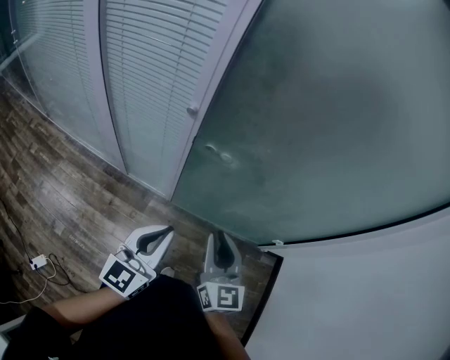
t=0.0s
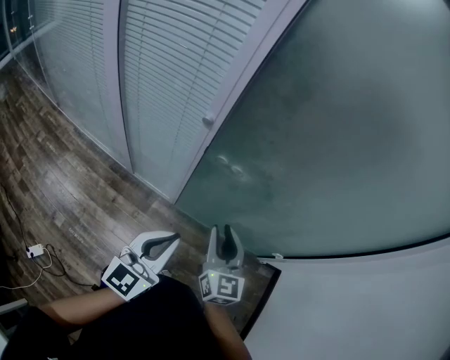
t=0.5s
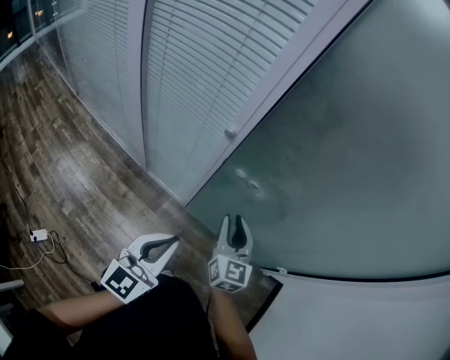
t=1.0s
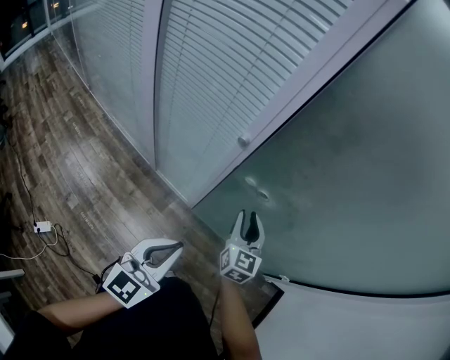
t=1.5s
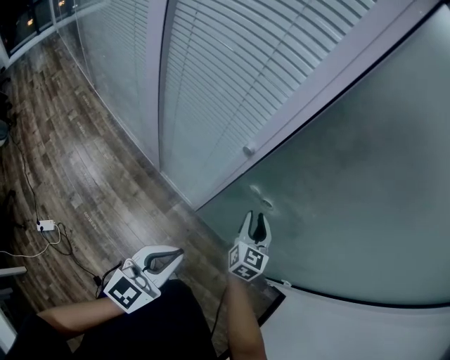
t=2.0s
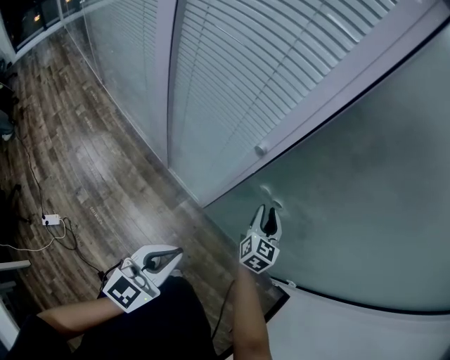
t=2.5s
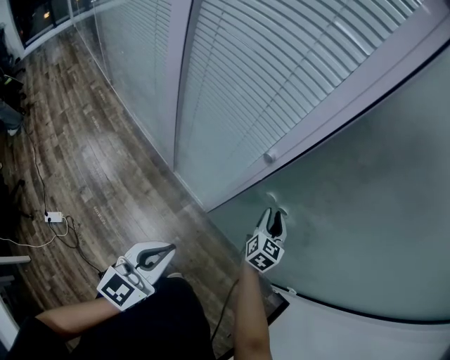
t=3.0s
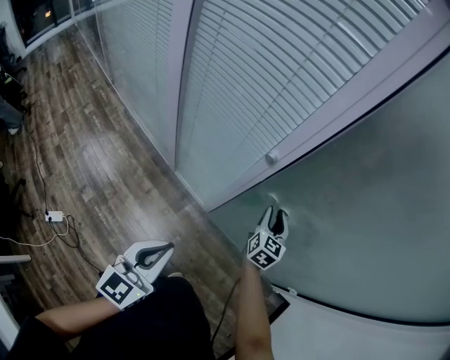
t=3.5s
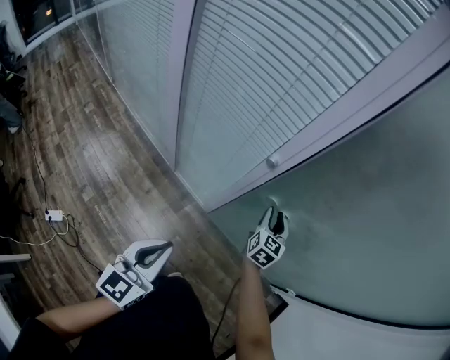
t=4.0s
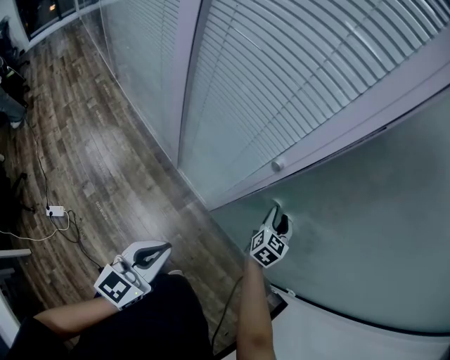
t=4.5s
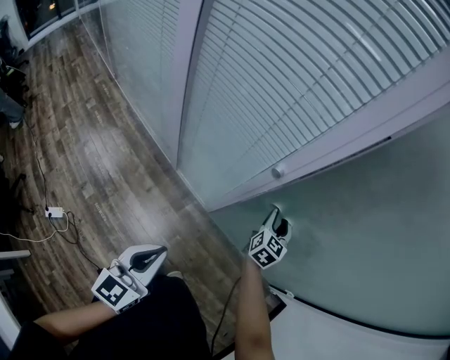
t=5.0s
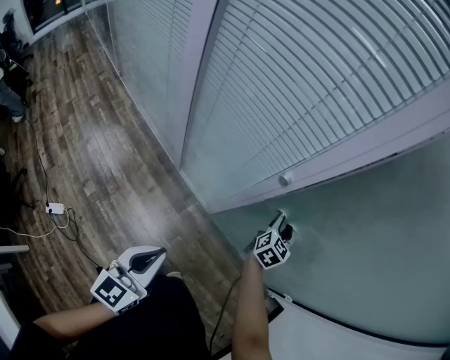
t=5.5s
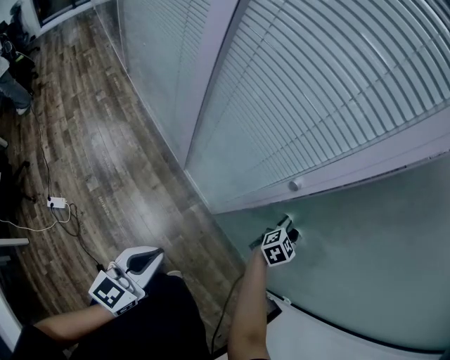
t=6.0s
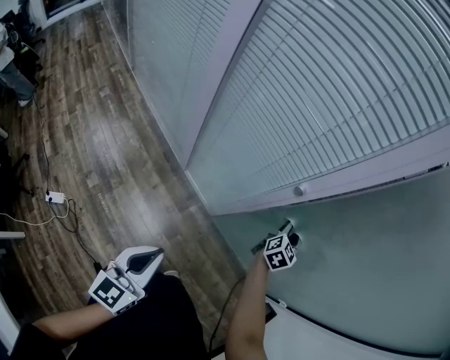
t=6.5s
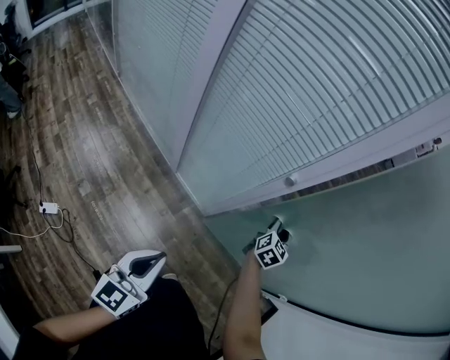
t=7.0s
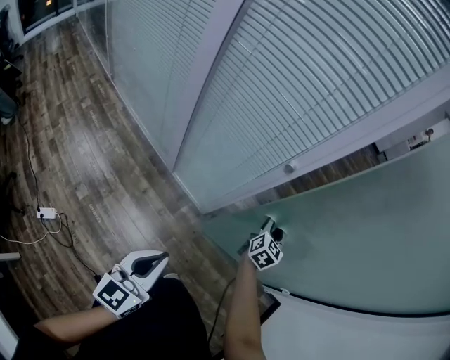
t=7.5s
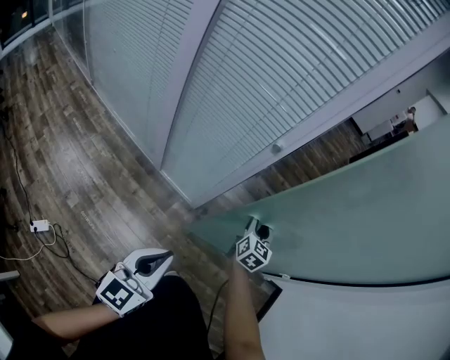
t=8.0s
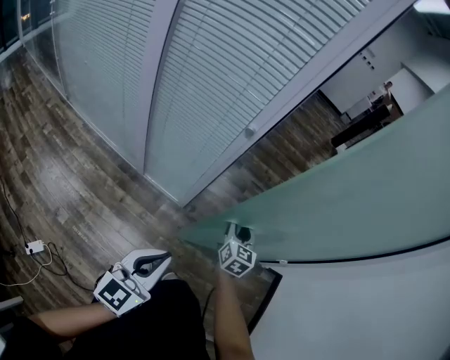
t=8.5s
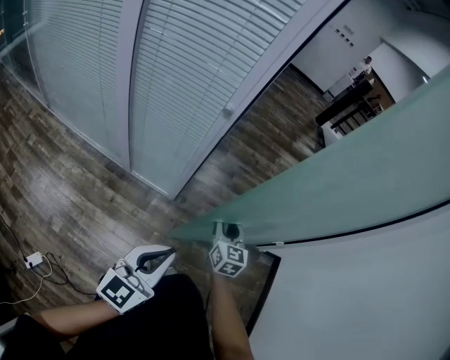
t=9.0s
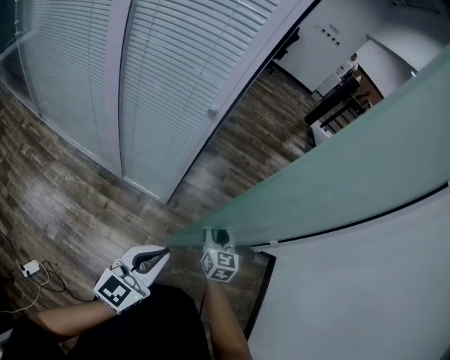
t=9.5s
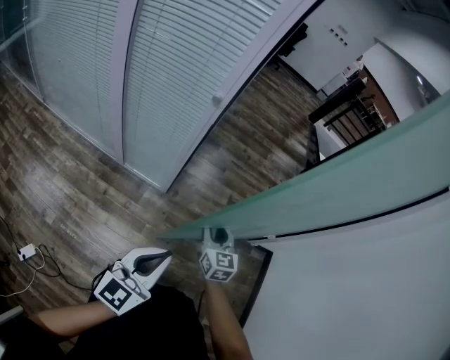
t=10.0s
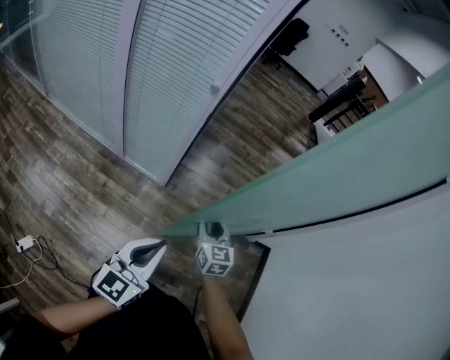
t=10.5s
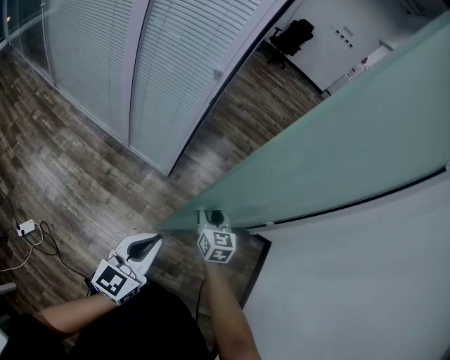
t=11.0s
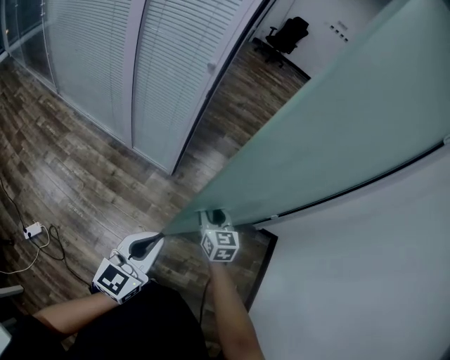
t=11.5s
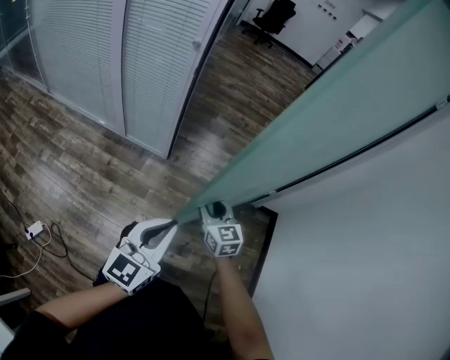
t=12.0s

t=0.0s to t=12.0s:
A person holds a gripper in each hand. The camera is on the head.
t=0.0s to t=2.0s: The right gripper shifts about 25 cm forward and downward.
t=2.0s to t=4.0s: The left gripper is displaced to the left by about 5 cm. Meanwhile the right gripper travels forward by roughly 5 cm.
t=4.0s to t=6.0s: The left gripper changes place by some 5 cm.
t=6.0s to t=8.0s: The left gripper goes about 5 cm backward. The right gripper heads backward, covering roughly 15 cm.
t=8.0s to t=10.0s: The right gripper travels backward by about 20 cm; the left gripper heads to the right, covering approximately 10 cm.
t=10.0s to t=12.0s: Both grippers move backward and to the right, approximately 15 cm.

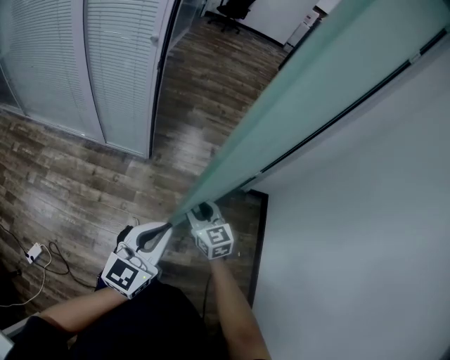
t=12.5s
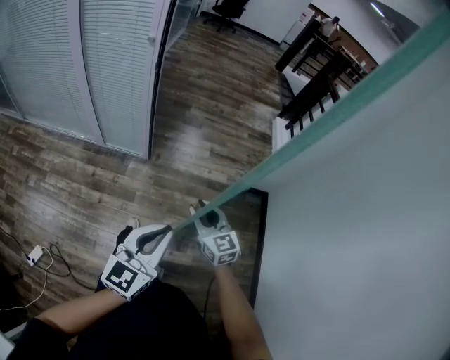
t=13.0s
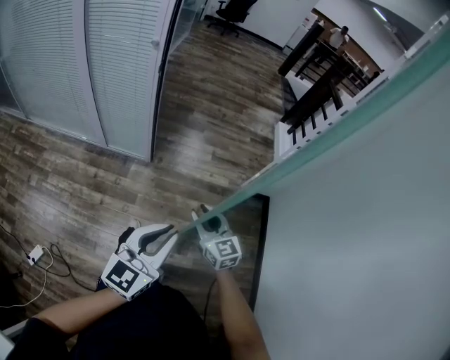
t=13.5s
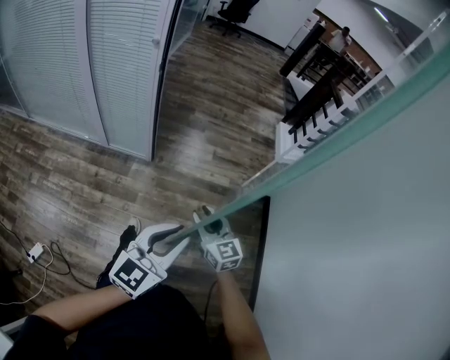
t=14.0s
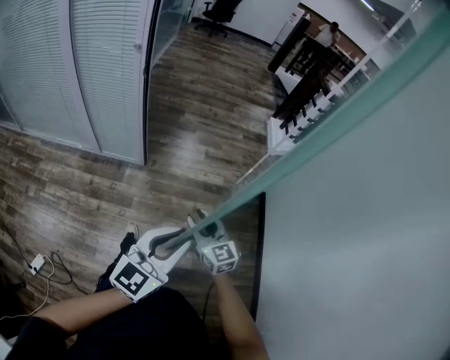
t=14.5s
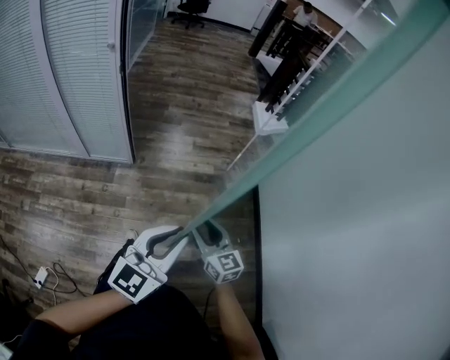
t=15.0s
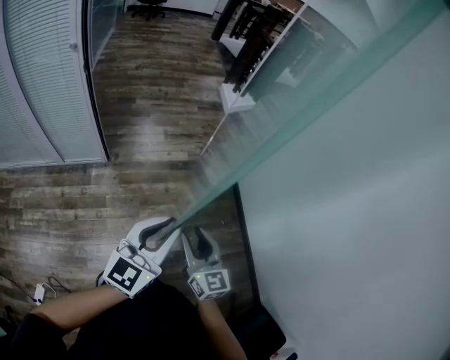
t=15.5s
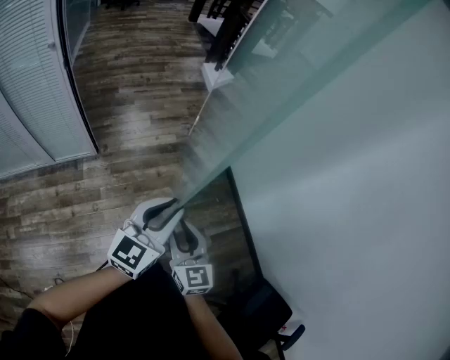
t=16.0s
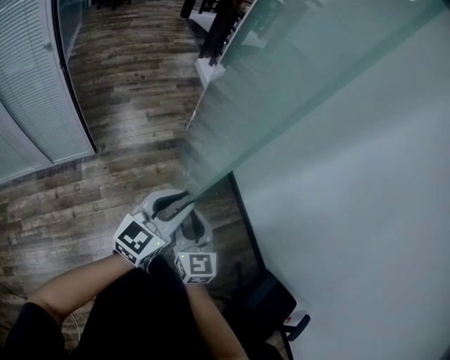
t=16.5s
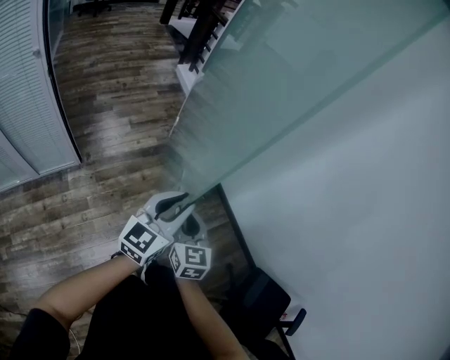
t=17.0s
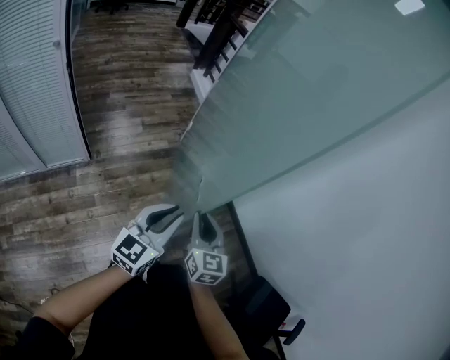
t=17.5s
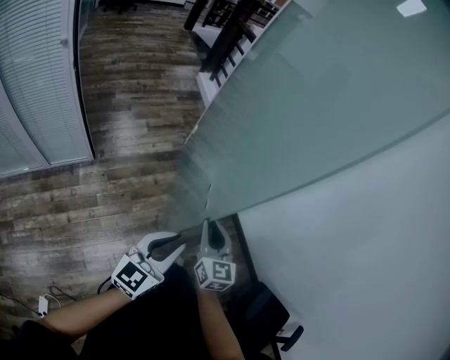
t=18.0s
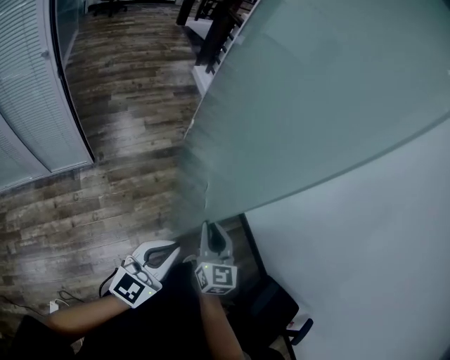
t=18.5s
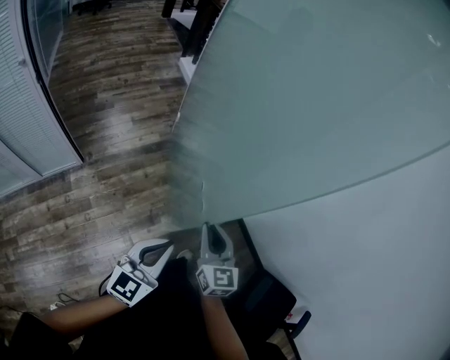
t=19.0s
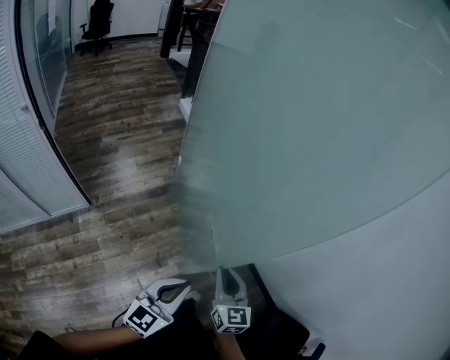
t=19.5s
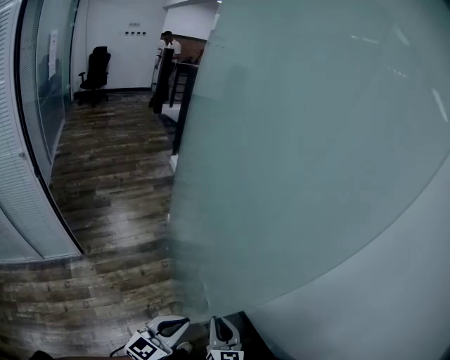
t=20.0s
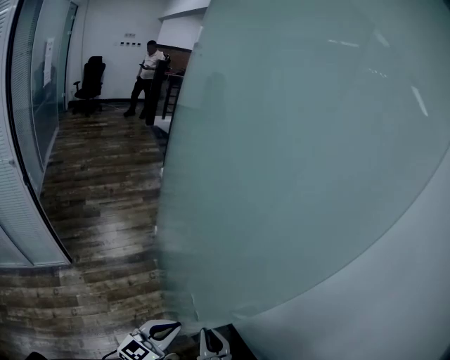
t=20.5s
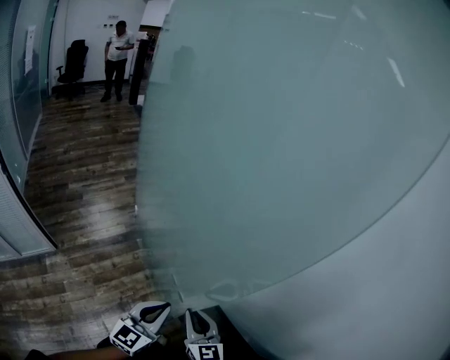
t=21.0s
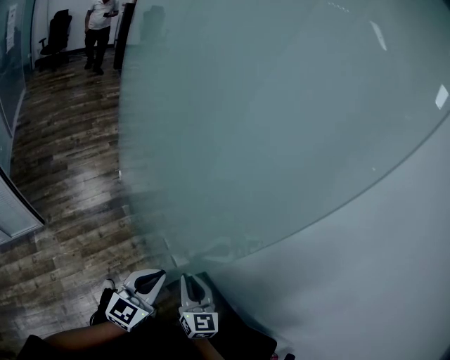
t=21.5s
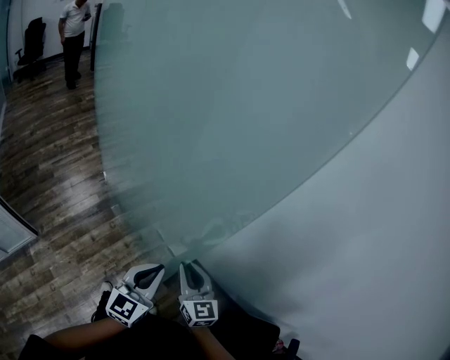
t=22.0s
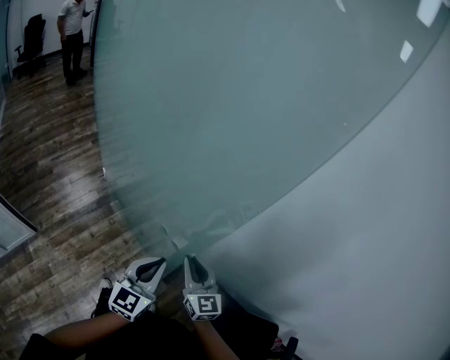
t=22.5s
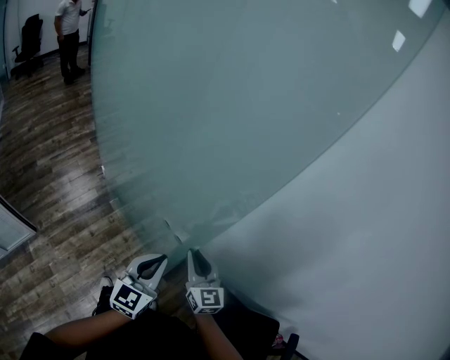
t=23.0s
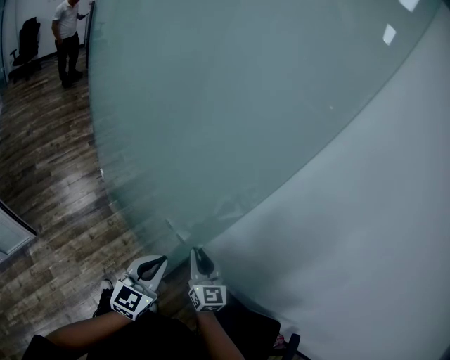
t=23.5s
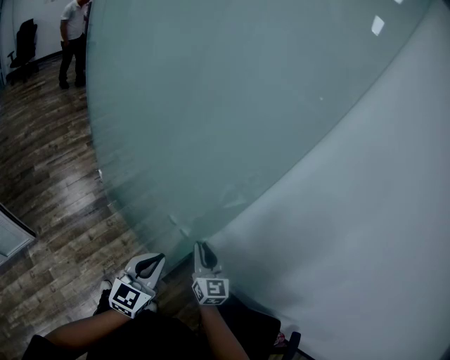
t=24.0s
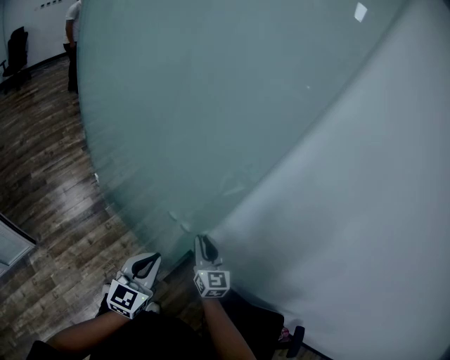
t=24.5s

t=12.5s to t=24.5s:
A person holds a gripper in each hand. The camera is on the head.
t=12.5s to t=14.5s: The right gripper moves backward and to the right, about 5 cm. Meanwhile the left gripper goes some 5 cm to the right.
t=14.5s to t=16.5s: The left gripper changes place by about 10 cm, and swivels roughly 30 degrees. The right gripper changes place by some 15 cm, and changes its angle by approximately 40 degrees.
t=16.5s to t=18.5s: The left gripper shifts about 10 cm backward. Meanwhile the right gripper goes approximately 5 cm to the right.
t=18.5s to t=20.5s: The two grippers go some 20 cm to the right and forward.
t=20.5s to t=22.5s: Both grippers move to the right and forward, approximately 15 cm.
t=22.5s to t=24.5s: The right gripper is displaced forward by roughly 5 cm.

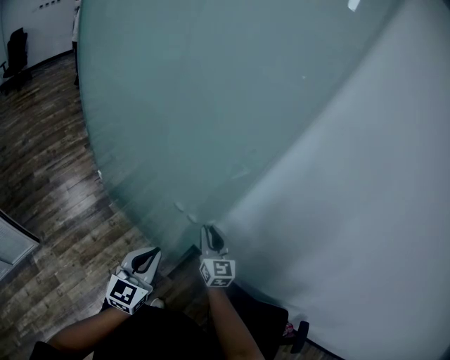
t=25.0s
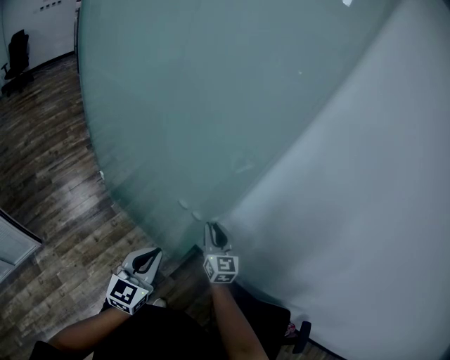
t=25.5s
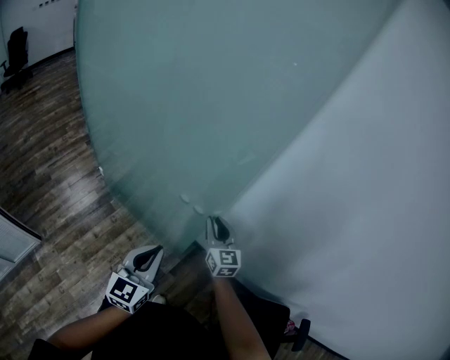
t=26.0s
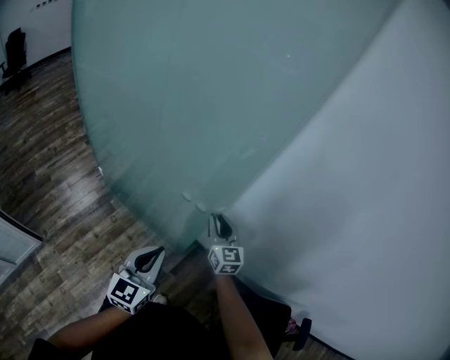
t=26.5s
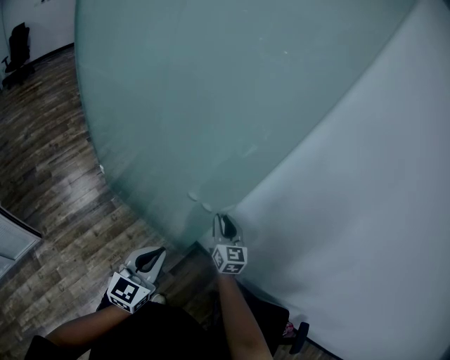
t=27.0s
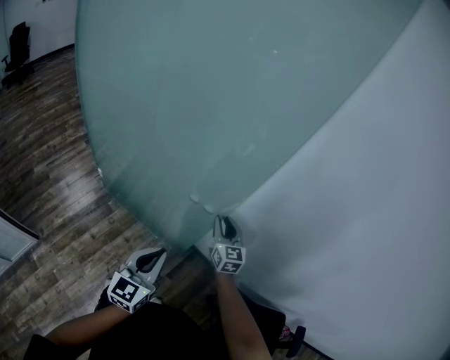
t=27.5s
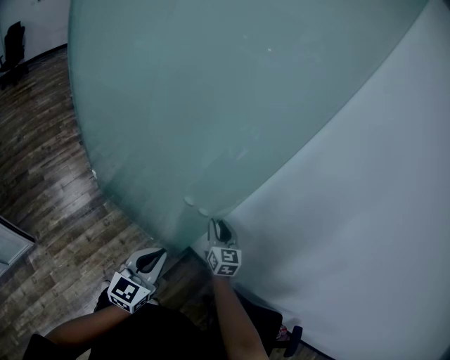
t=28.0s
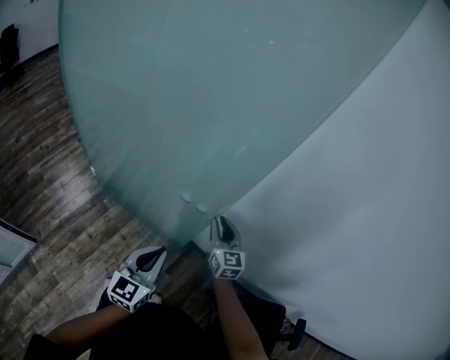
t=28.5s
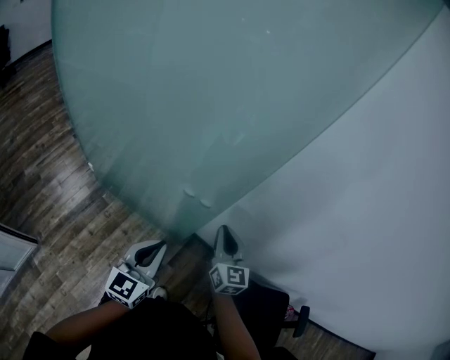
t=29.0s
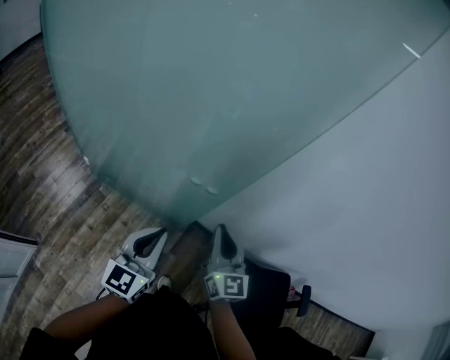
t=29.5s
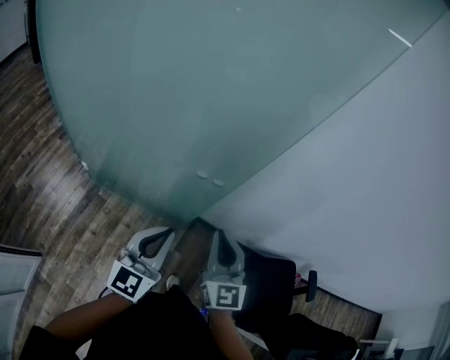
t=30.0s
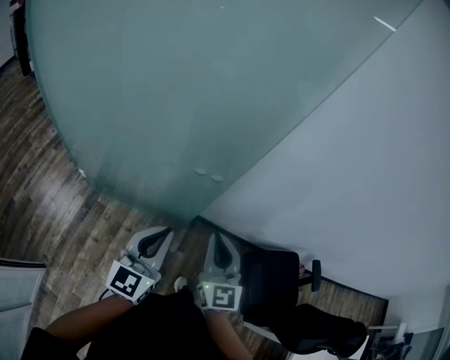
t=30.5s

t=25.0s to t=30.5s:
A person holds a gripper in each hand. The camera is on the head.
t=25.0s to t=27.0s: The right gripper is displaced forward by about 5 cm.
t=27.0s to t=28.5s: The grippers stay close to where they were, moving slightly.
t=28.5s to t=30.5s: The right gripper goes some 20 cm backward, swivels approximately 20 degrees, and closes its fingers; the left gripper heads to the left and backward, covering some 10 cm.
